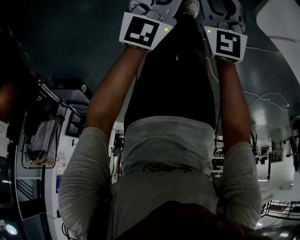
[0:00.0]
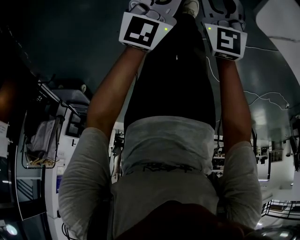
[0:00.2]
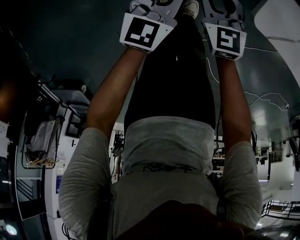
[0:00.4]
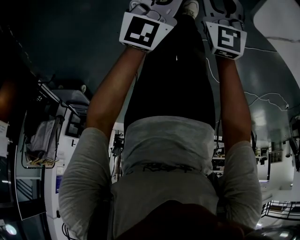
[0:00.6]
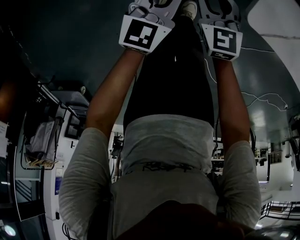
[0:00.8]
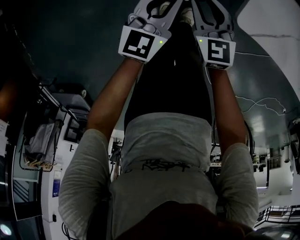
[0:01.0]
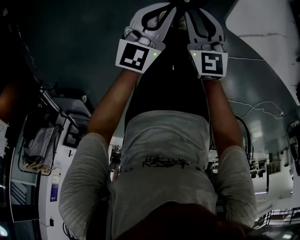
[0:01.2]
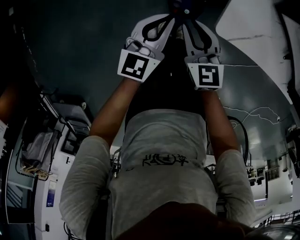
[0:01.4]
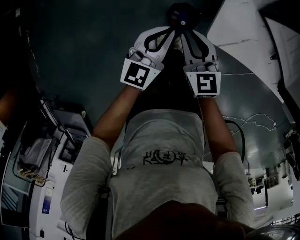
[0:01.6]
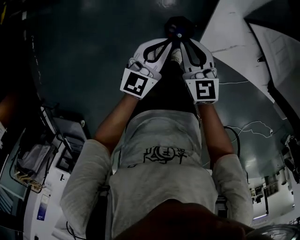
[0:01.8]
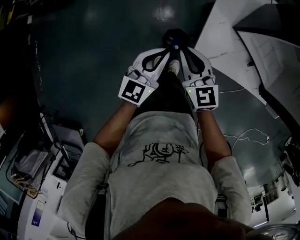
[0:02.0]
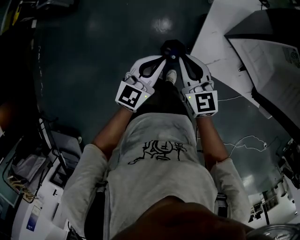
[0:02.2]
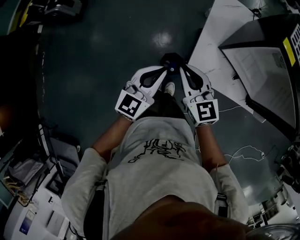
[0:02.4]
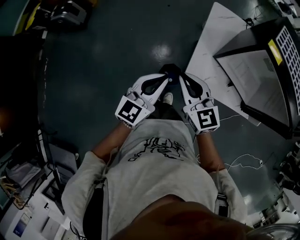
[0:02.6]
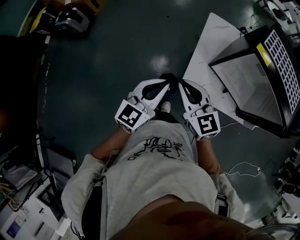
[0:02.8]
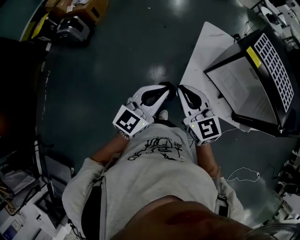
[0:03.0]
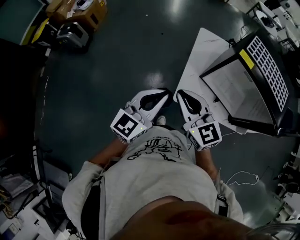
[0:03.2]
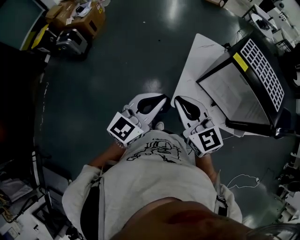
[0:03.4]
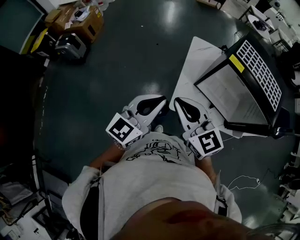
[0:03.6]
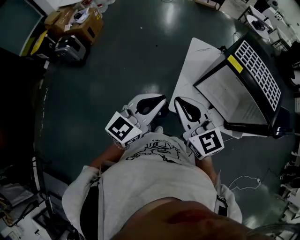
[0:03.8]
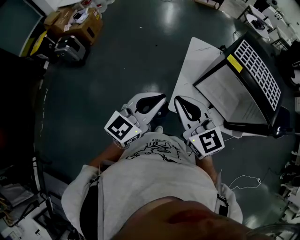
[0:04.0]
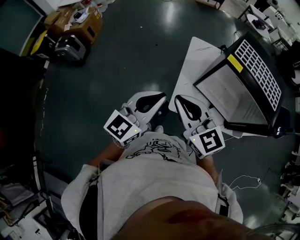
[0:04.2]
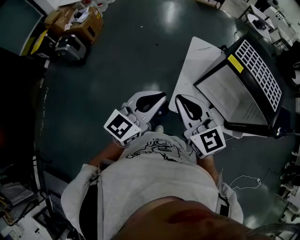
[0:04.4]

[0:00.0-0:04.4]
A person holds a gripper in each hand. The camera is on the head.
0:00.0 to 0:01.4: Both grippers travel together upward, some 15 cm.
0:01.4 to 0:03.0: Both grippers travel together upward, approximately 40 cm. The right gripper swivels about 20 degrees.
0:03.0 to 0:04.4: Both grippers move upward, some 10 cm.

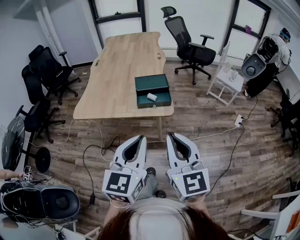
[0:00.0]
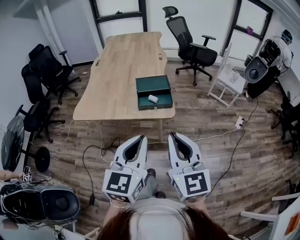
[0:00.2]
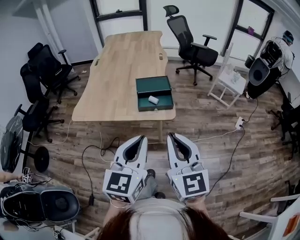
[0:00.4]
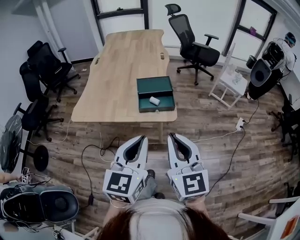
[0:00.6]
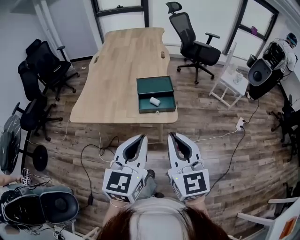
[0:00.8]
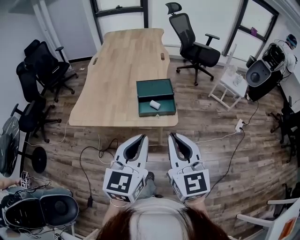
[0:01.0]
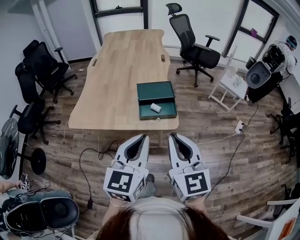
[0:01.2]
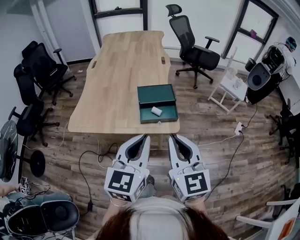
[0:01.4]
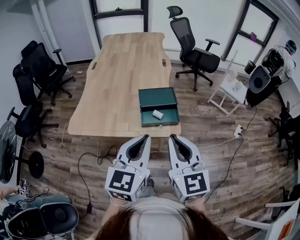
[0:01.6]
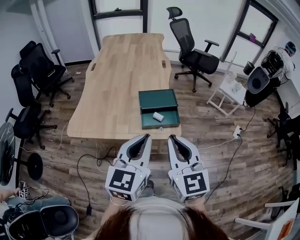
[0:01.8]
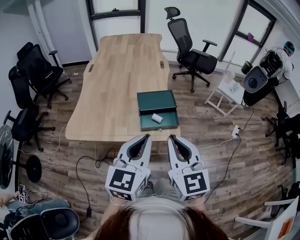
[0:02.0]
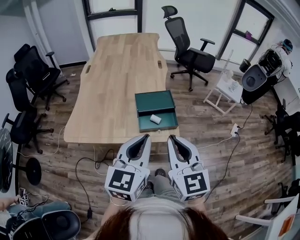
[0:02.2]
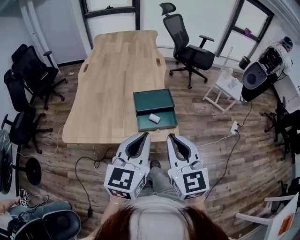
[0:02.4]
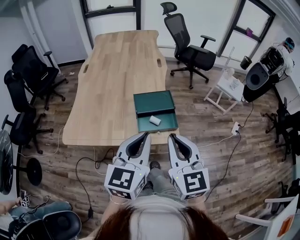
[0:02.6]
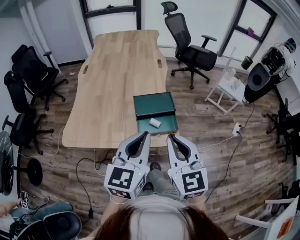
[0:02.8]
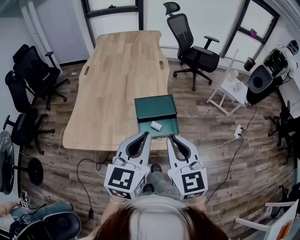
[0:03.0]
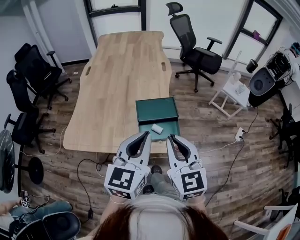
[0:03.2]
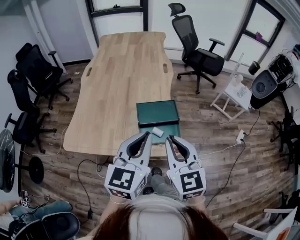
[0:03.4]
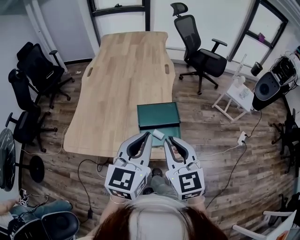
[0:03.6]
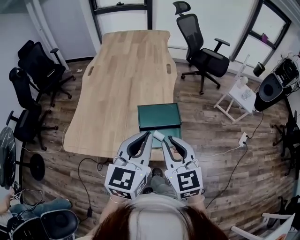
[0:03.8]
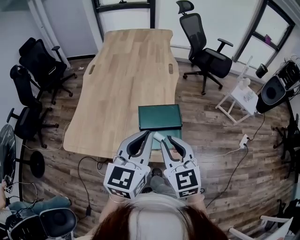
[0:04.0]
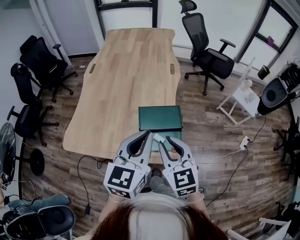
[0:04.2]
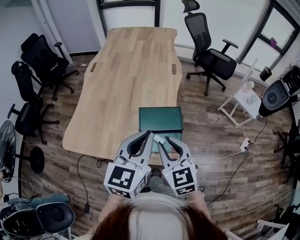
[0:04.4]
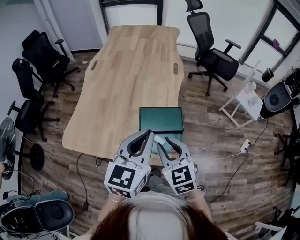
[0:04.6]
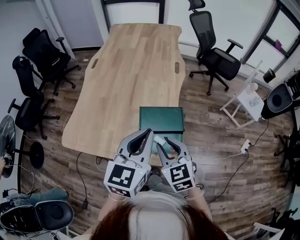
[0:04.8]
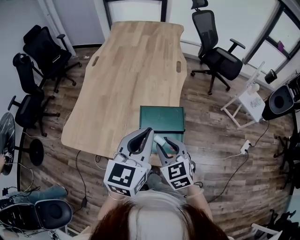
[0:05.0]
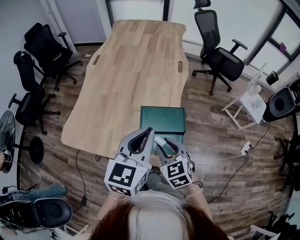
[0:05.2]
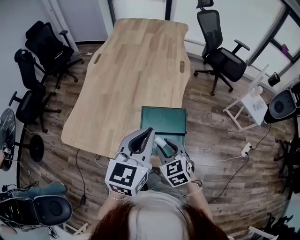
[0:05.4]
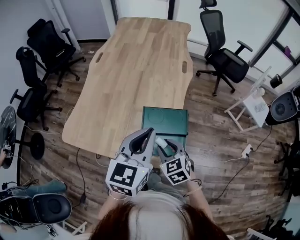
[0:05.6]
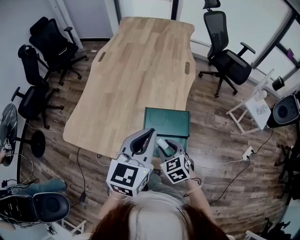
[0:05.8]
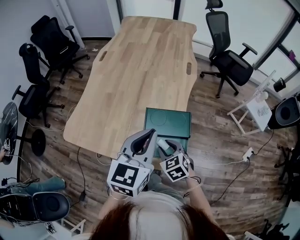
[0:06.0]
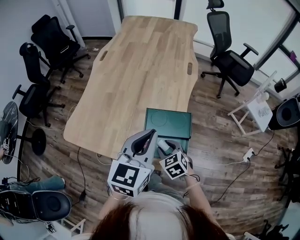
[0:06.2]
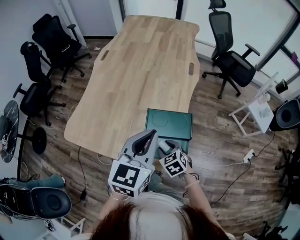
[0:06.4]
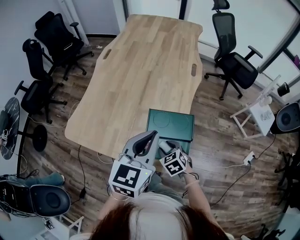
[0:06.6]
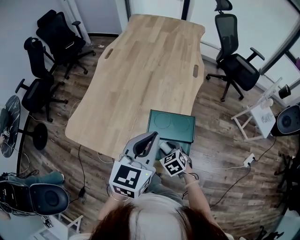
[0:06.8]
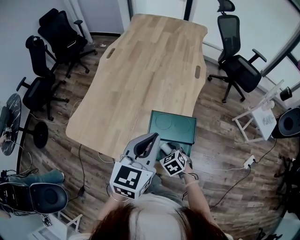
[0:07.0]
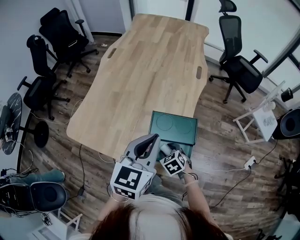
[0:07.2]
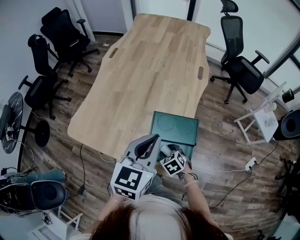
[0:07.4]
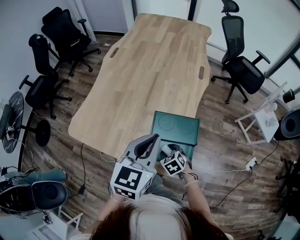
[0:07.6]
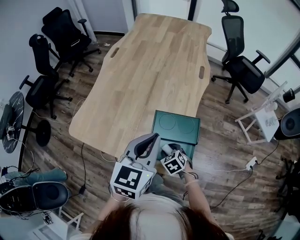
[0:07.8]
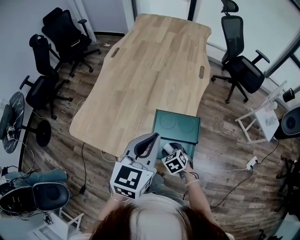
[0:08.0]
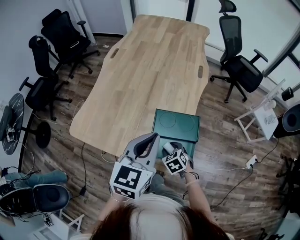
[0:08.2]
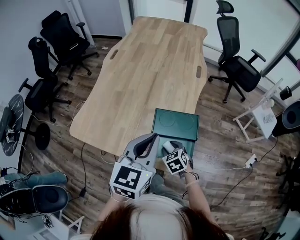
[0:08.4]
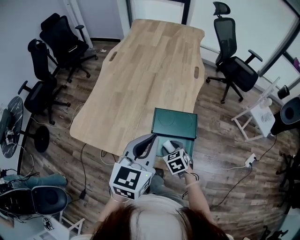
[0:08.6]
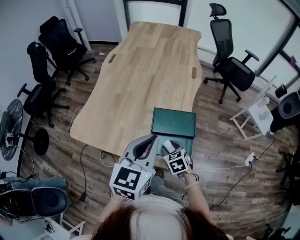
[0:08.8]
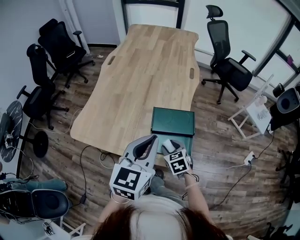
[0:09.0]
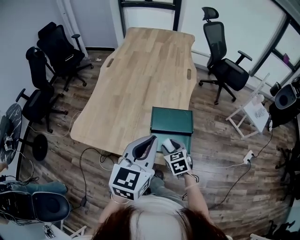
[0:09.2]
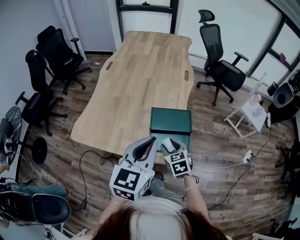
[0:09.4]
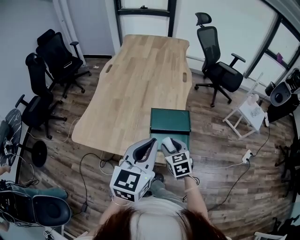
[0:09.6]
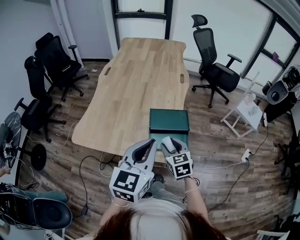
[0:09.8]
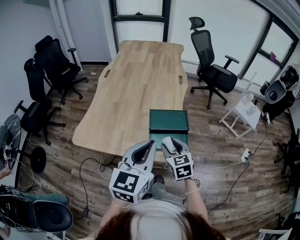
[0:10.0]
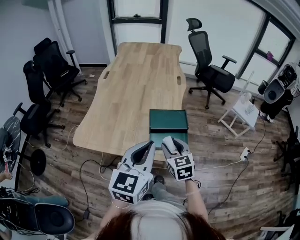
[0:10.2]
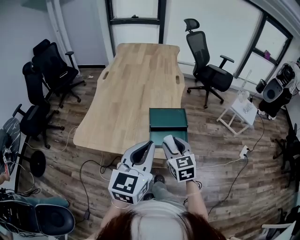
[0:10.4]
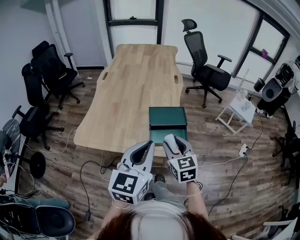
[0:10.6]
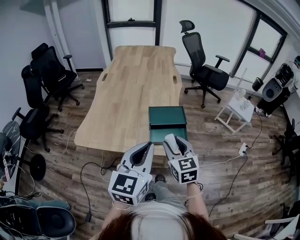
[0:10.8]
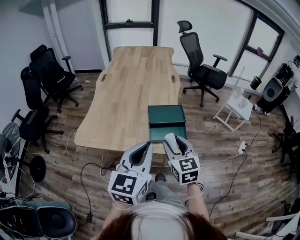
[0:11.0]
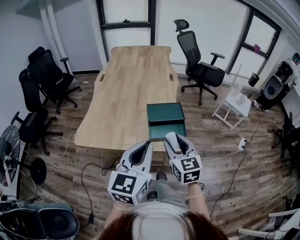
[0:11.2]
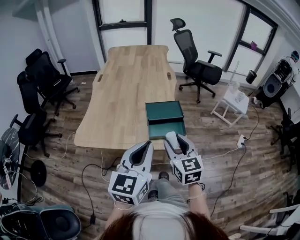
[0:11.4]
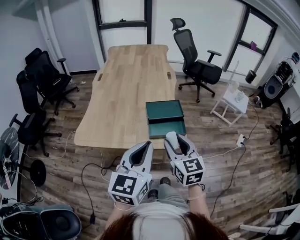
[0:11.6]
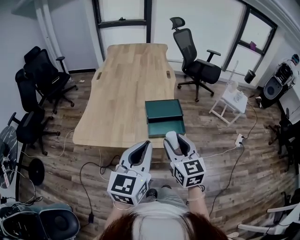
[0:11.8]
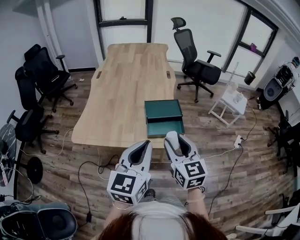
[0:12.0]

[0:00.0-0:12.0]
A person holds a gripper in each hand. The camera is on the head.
0:00.0 to 0:01.6: The grippers both shift forward by roughly 15 cm.
0:01.6 to 0:03.0: The grippers both shift forward by approximately 10 cm.
0:03.0 to 0:04.4: The right gripper shifts roughly 15 cm forward and downward. Meanwhile the left gripper goes approximately 10 cm forward.
0:04.4 to 0:06.0: The left gripper moves forward, some 5 cm; the right gripper is displaced downward by roughly 15 cm, and swivels roughly 30 degrees.
0:06.0 to 0:07.6: The right gripper is displaced downward by some 10 cm.
0:07.6 to 0:09.0: The right gripper shifts approximately 10 cm upward, while the left gripper heads backward, covering roughly 10 cm.
0:09.0 to 0:10.4: The left gripper travels backward by roughly 10 cm. The right gripper moves upward and backward, roughly 15 cm, and changes its angle by about 30 degrees.
0:10.4 to 0:12.0: The left gripper shifts about 5 cm backward. The right gripper shifts about 15 cm backward and upward.

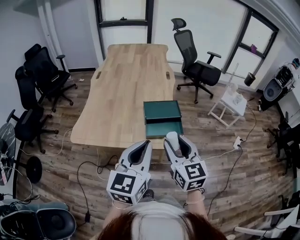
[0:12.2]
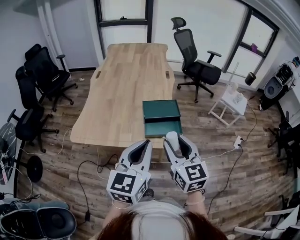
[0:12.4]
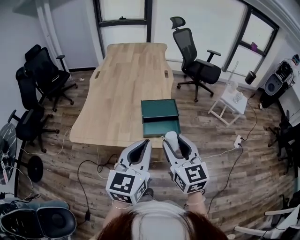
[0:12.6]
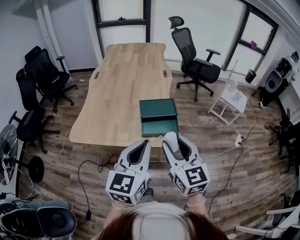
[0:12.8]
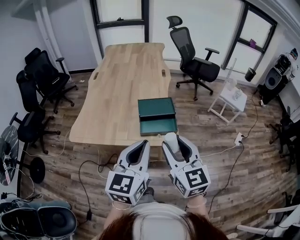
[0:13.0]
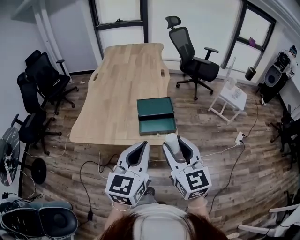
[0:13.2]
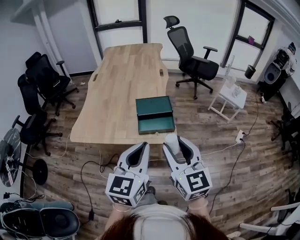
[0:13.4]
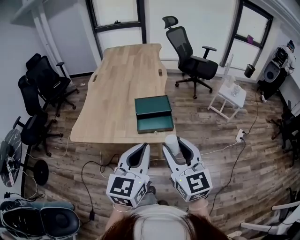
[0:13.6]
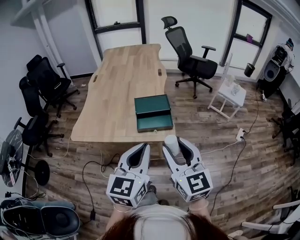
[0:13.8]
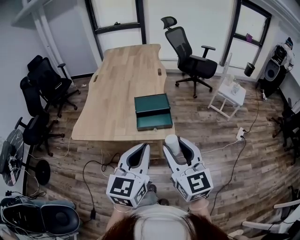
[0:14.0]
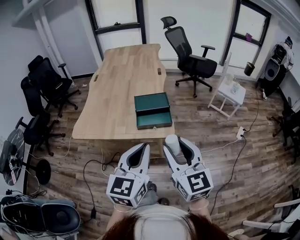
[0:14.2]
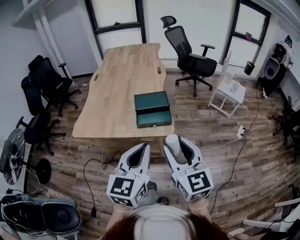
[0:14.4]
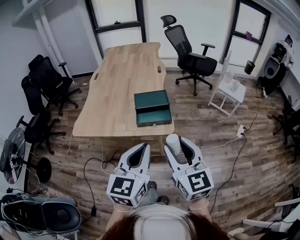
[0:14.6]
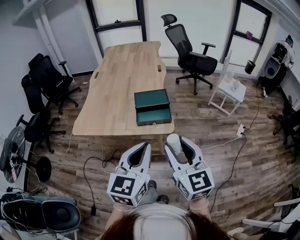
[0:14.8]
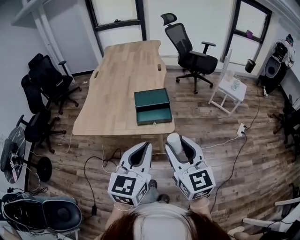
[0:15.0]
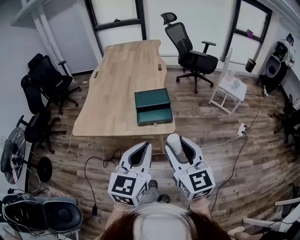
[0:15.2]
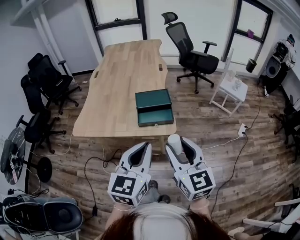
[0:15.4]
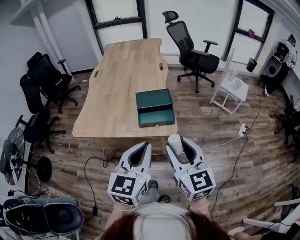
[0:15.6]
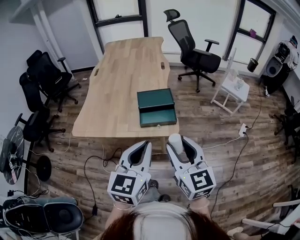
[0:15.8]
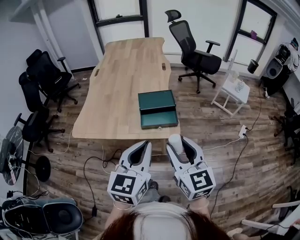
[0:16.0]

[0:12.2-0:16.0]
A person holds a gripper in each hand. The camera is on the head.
0:12.2 to 0:13.4: The right gripper shifts some 10 cm backward, to the right and upward. The left gripper shifts roughly 5 cm to the right.
0:13.4 to 0:14.8: The two grippers go some 5 cm backward.
0:14.8 to 0:16.0: Both grippers travel together forward, approximately 5 cm.

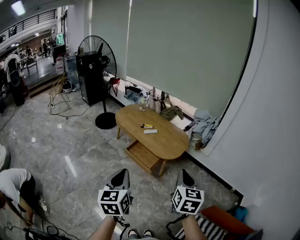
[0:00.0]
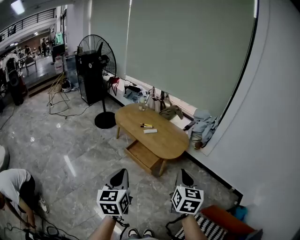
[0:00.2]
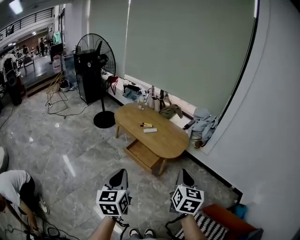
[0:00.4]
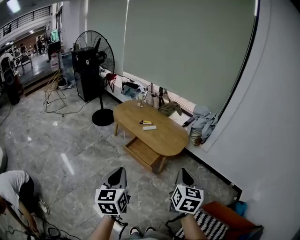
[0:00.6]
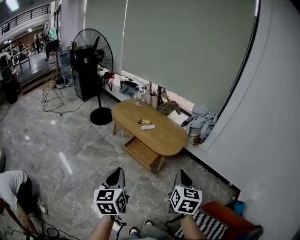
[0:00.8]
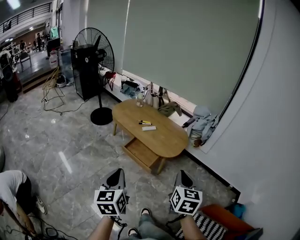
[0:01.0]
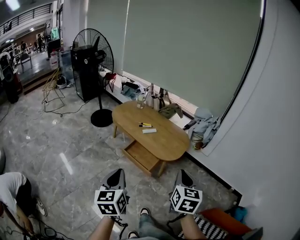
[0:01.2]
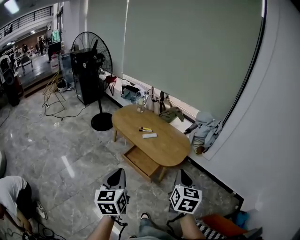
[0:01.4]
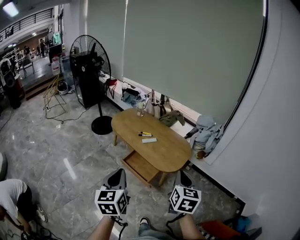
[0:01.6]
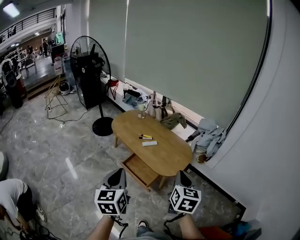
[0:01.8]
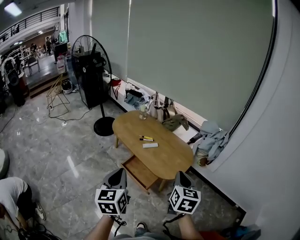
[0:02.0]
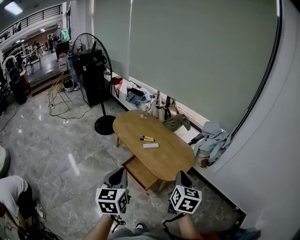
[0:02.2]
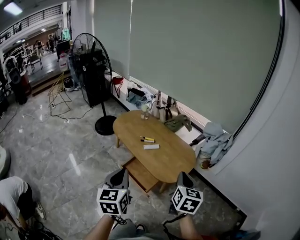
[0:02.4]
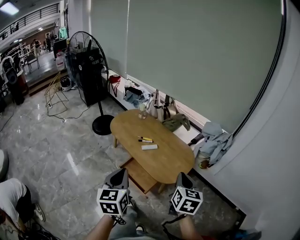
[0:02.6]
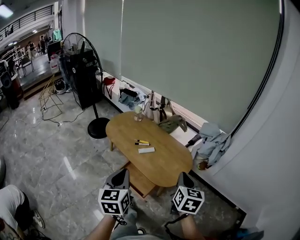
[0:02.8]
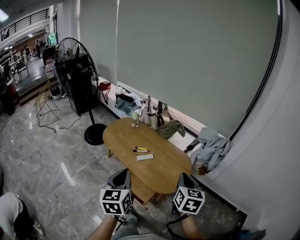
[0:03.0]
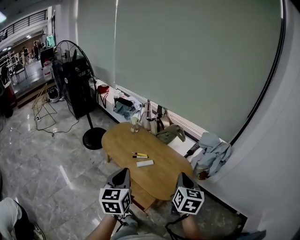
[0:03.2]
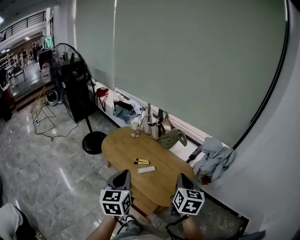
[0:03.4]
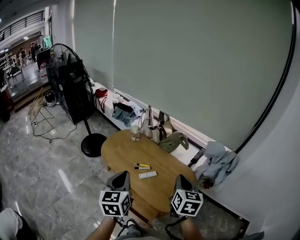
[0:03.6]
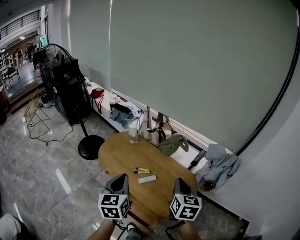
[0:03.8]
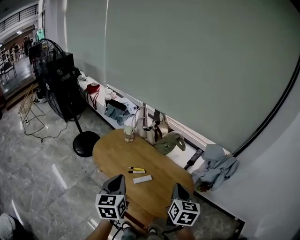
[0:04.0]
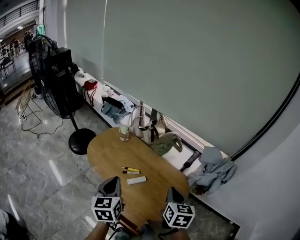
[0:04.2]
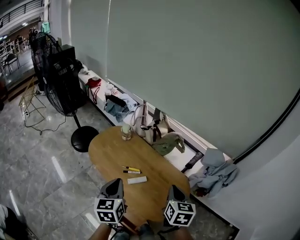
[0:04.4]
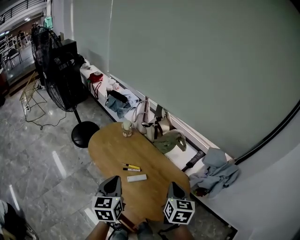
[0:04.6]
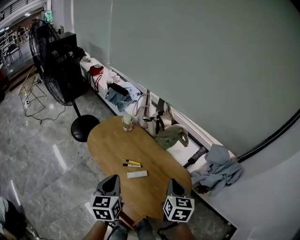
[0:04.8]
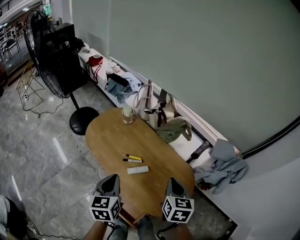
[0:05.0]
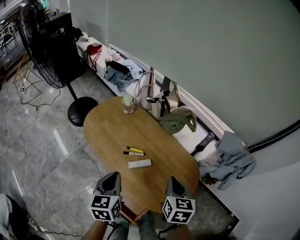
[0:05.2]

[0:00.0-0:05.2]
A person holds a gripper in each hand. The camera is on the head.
0:00.0 to 0:01.8: The grippers both shift forward by approximately 20 cm.
0:01.8 to 0:03.4: Both grippers travel together forward, some 25 cm.
0:03.4 to 0:05.2: The two grippers go about 25 cm downward and forward.
